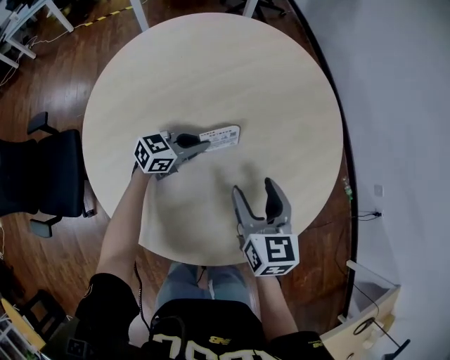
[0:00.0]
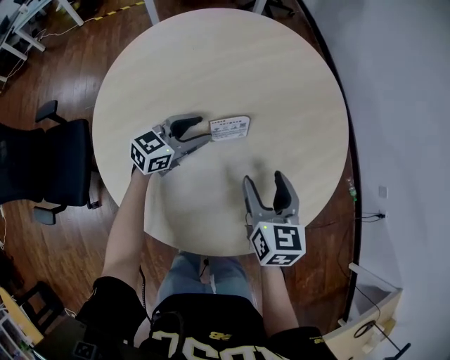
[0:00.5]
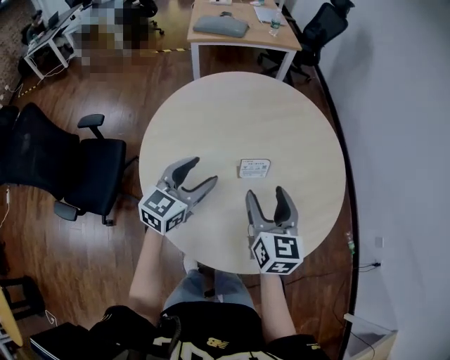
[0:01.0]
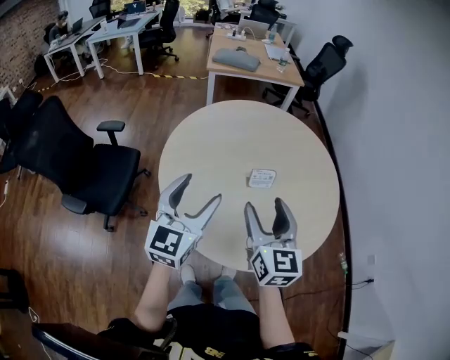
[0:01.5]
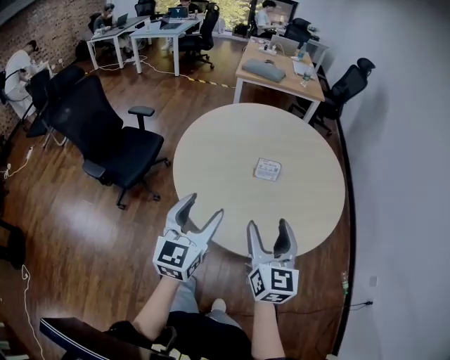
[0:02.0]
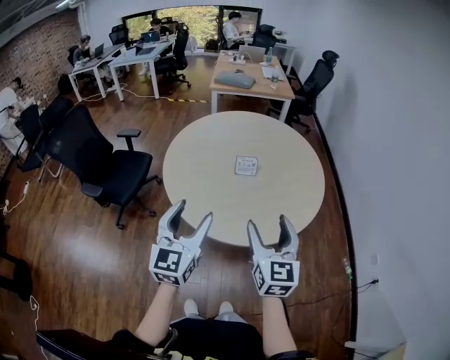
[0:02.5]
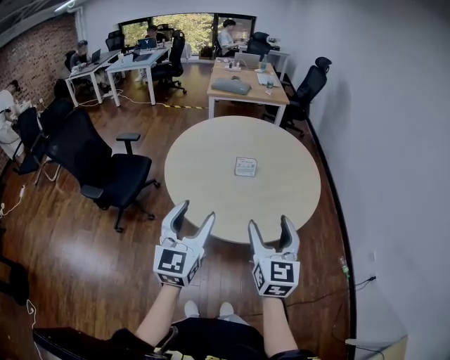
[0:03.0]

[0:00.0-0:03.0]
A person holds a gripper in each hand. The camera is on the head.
0:00.0 to 0:01.5: The left gripper goes roughly 35 cm upward, rotates roughly 60 degrees, and opens its fingers; the right gripper is displaced upward by some 20 cm, and changes its angle by some 20 degrees.
0:01.5 to 0:03.0: The right gripper heads backward and to the right, covering about 30 cm; the left gripper heads backward, covering about 25 cm.

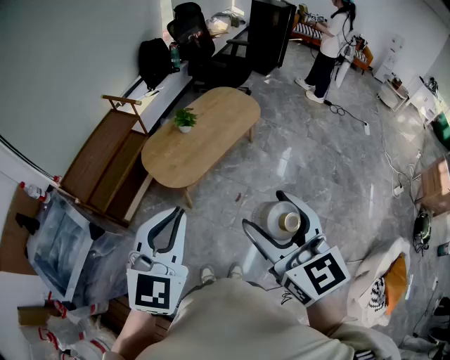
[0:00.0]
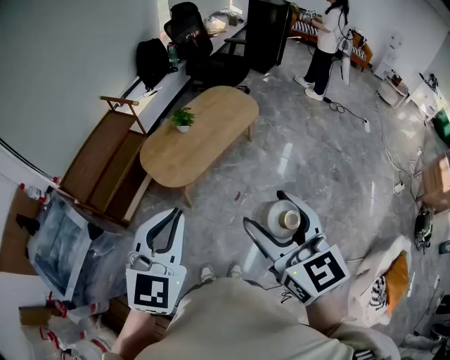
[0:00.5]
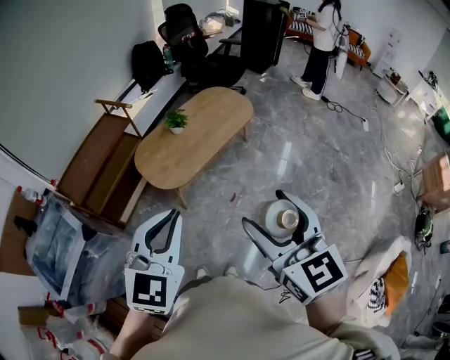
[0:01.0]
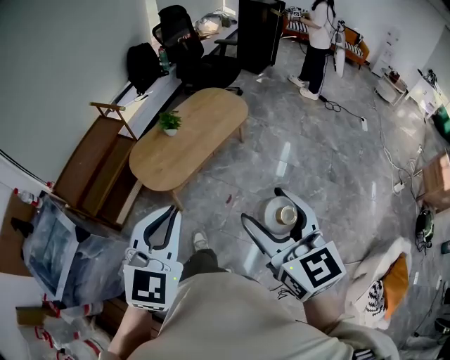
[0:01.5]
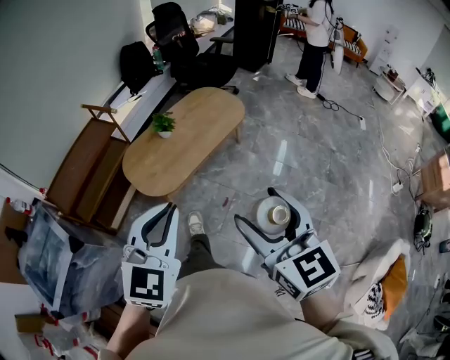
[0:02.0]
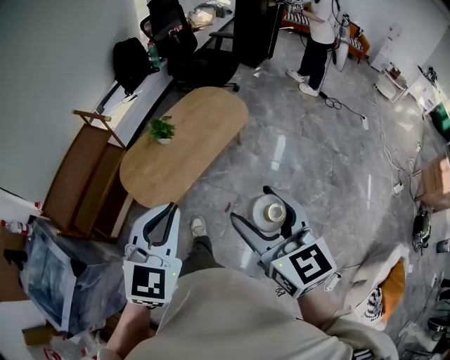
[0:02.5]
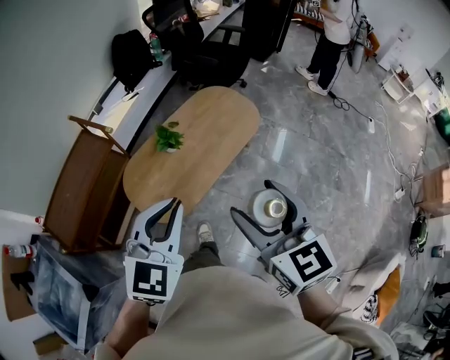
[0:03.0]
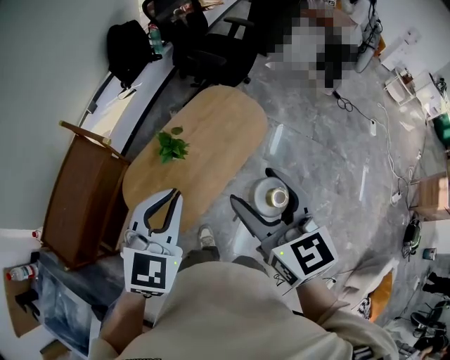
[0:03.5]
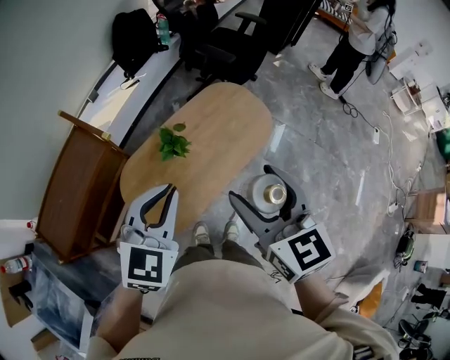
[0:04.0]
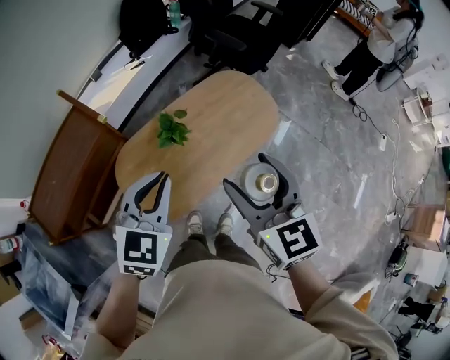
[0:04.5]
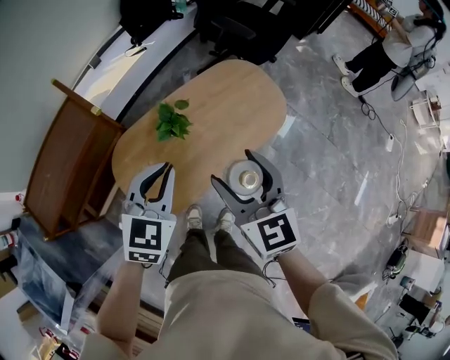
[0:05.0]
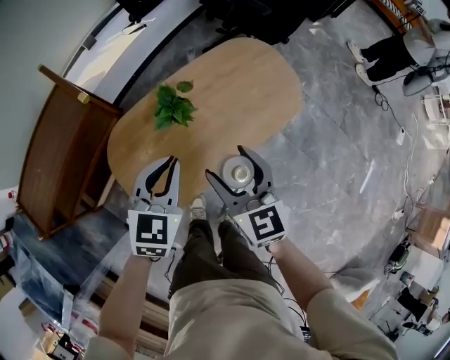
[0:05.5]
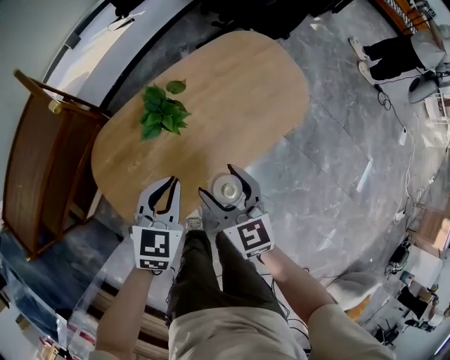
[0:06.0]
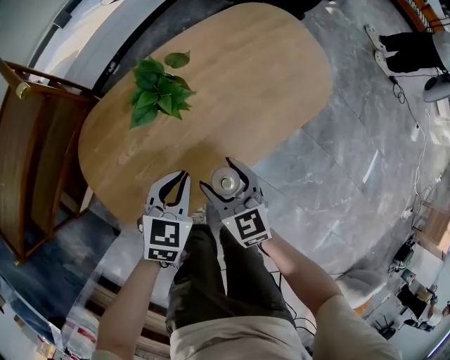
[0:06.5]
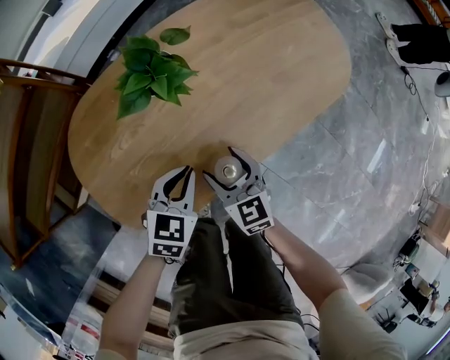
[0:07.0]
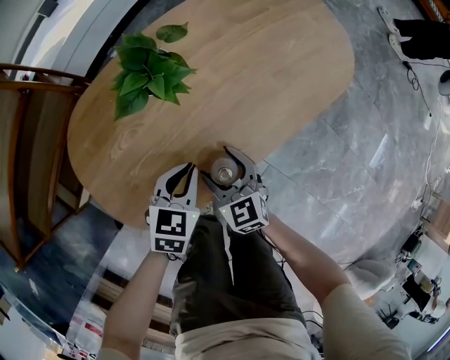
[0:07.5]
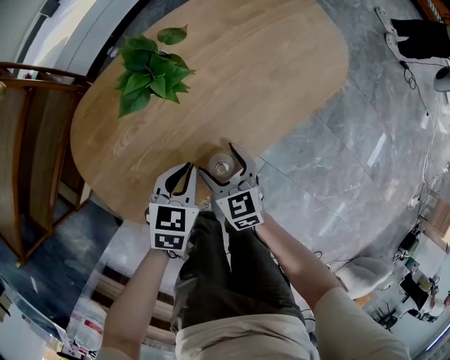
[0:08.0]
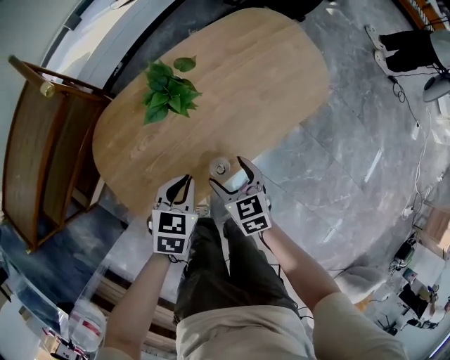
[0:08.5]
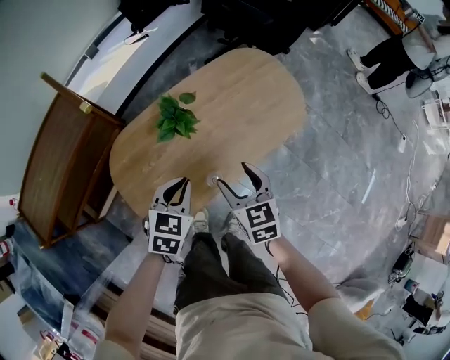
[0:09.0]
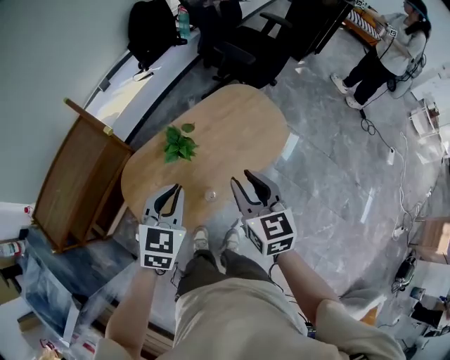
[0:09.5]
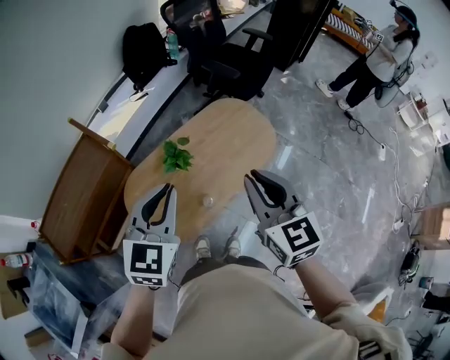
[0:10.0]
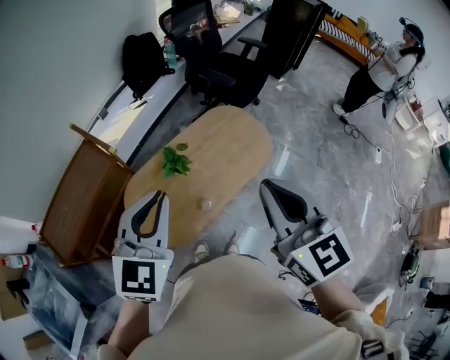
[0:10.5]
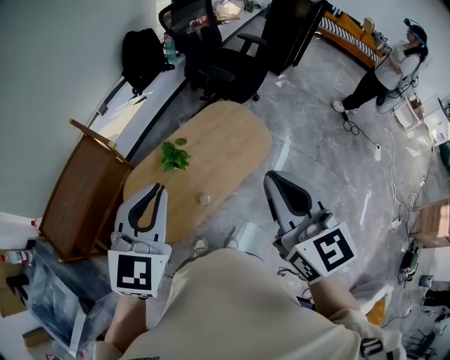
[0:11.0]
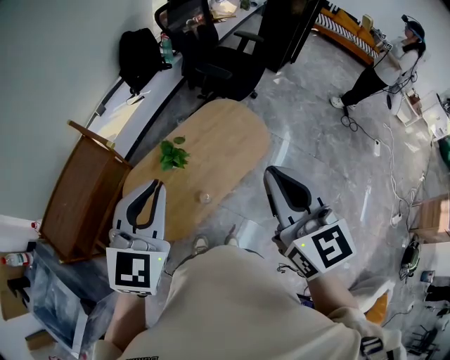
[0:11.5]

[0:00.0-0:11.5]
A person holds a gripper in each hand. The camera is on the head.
0:00.0 to 0:02.0: The right gripper travels to the right, forward and downward by about 15 cm. The left gripper is displaced to the right and forward by some 15 cm.
0:02.0 to 0:04.0: The two grippers travel together, forward, approximately 50 cm.
0:04.0 to 0:06.0: Both grippers travel together downward, about 40 cm. The left gripper turns by approximately 20 degrees.
0:06.0 to 0:07.5: Both grippers move downward, approximately 25 cm.
0:07.5 to 0:09.5: The grippers both shift upward by some 50 cm. The left gripper swivels roughly 20 degrees; the right gripper closes its fingers.
0:09.5 to 0:11.5: The left gripper heads upward, covering about 20 cm; the right gripper travels upward and backward by roughly 25 cm, and closes its fingers.

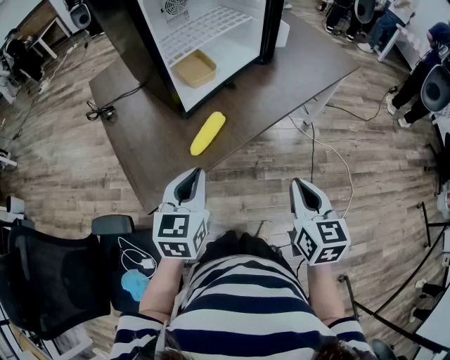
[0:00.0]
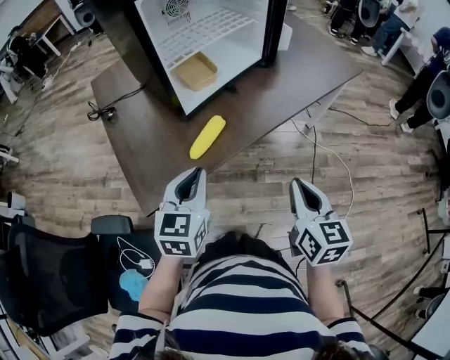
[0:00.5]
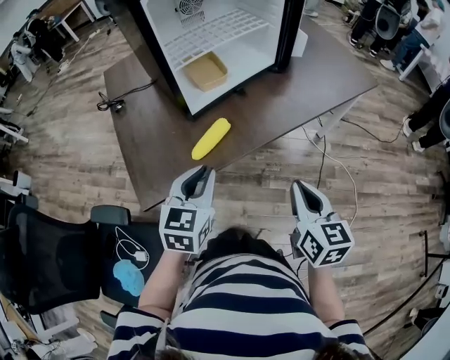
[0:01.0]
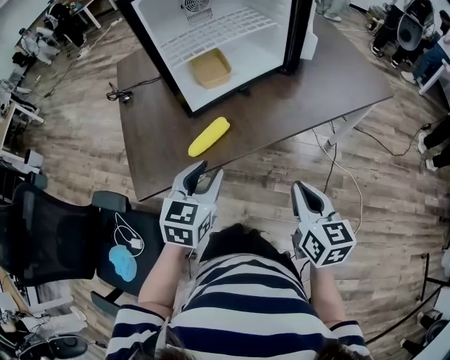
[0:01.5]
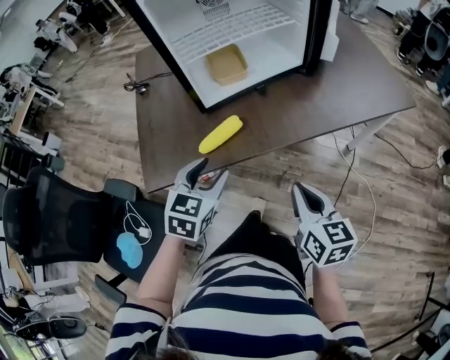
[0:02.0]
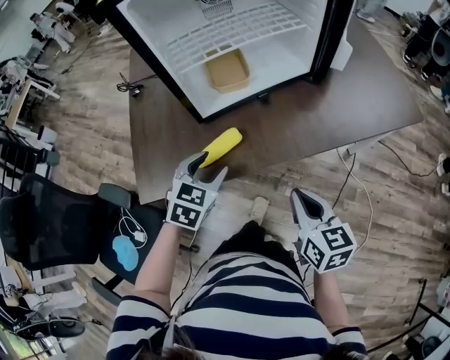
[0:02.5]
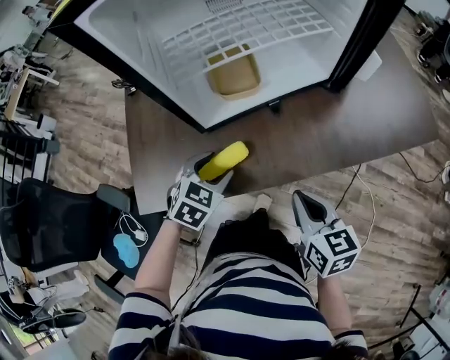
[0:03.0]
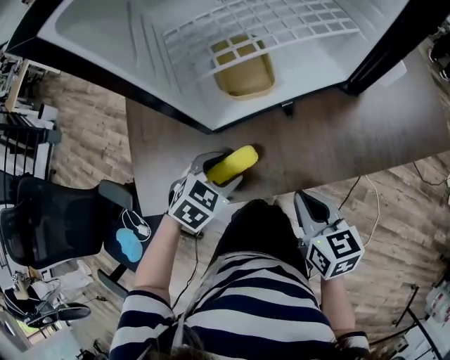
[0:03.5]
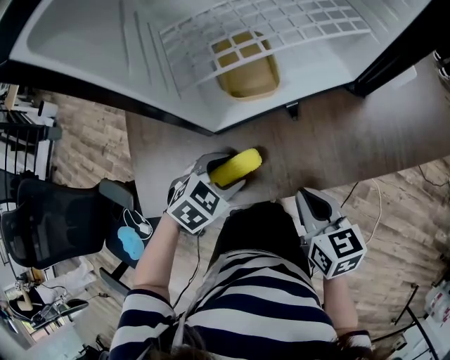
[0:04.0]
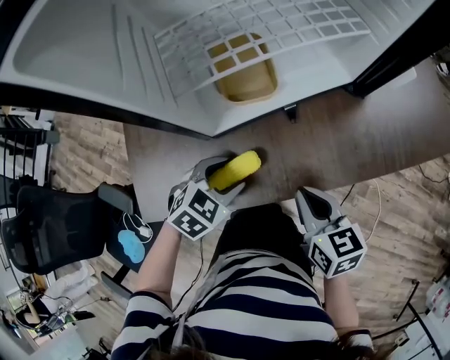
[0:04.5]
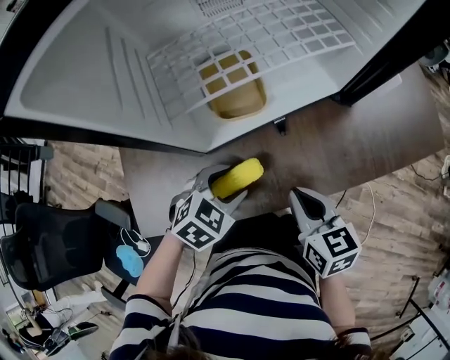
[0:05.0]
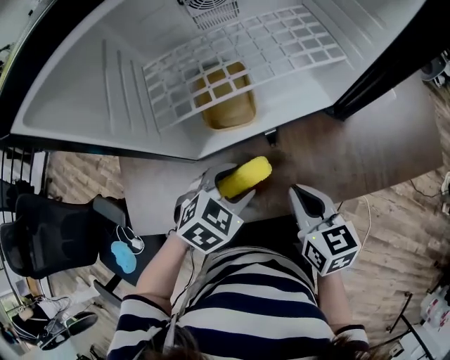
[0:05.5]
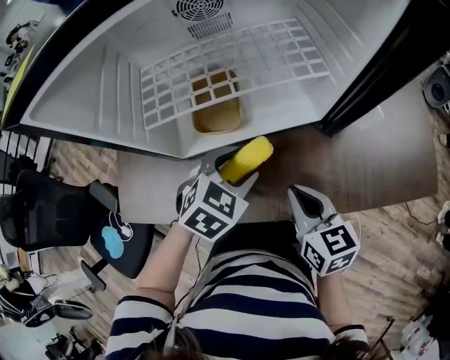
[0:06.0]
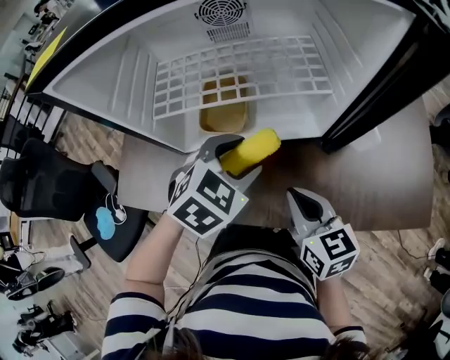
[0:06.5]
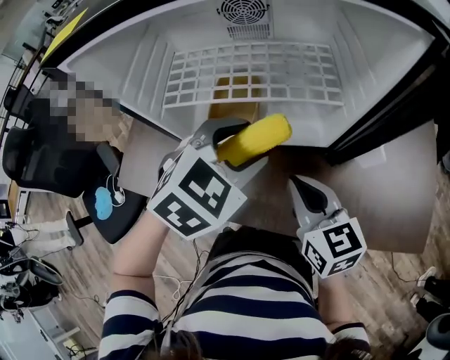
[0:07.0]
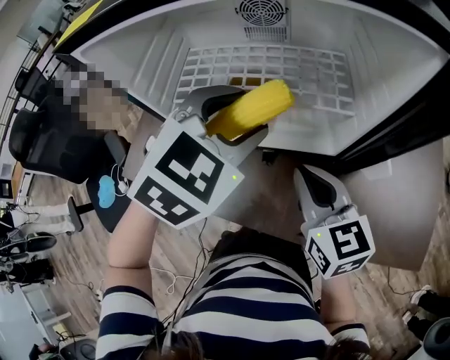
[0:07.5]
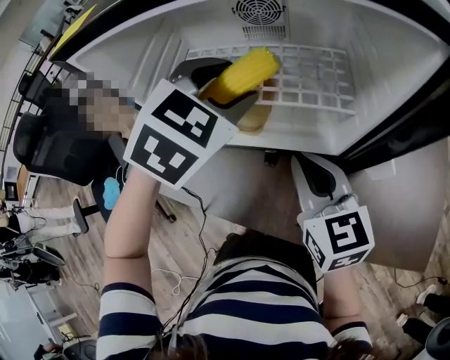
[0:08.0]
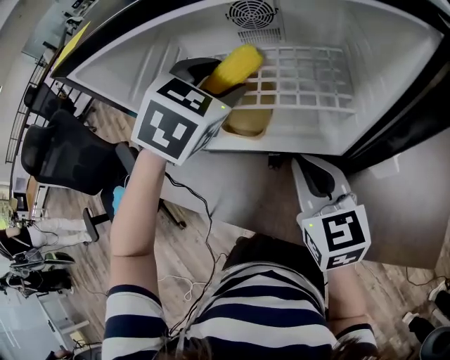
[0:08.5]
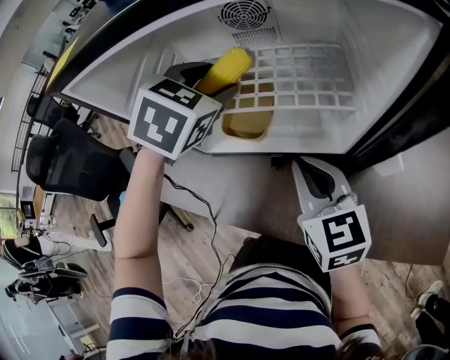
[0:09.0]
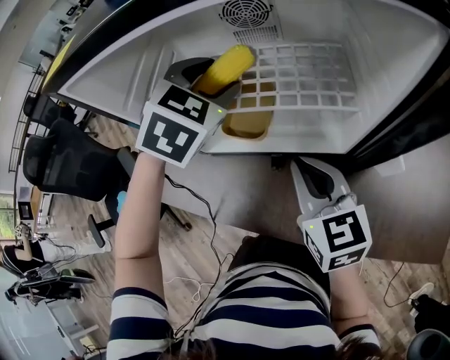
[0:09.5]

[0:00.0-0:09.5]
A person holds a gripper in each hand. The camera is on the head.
0:00.0 to 0:02.0: The left gripper shifts some 5 cm to the right, while the right gripper moves forward, about 10 cm, and rotates about 30 degrees.
0:02.0 to 0:04.0: The left gripper is displaced forward and downward by roughly 20 cm, and changes its angle by some 30 degrees. The right gripper travels forward by about 20 cm.
0:04.0 to 0:05.5: The left gripper travels to the right and forward by approximately 10 cm; the right gripper goes approximately 10 cm forward.
0:05.5 to 0:07.5: The right gripper moves about 15 cm, and turns by approximately 30 degrees, while the left gripper shifts some 20 cm upward, and turns by about 30 degrees.
0:07.5 to 0:09.5: The left gripper moves forward, approximately 10 cm.

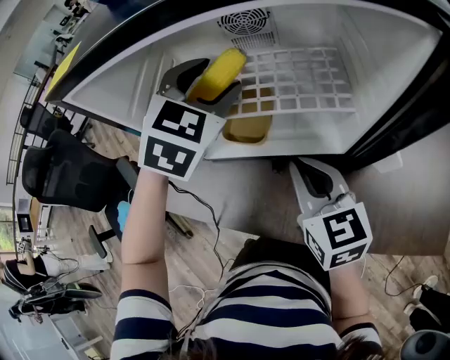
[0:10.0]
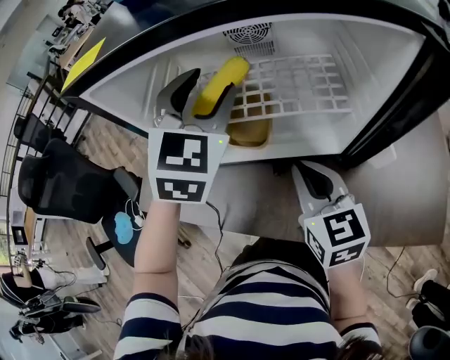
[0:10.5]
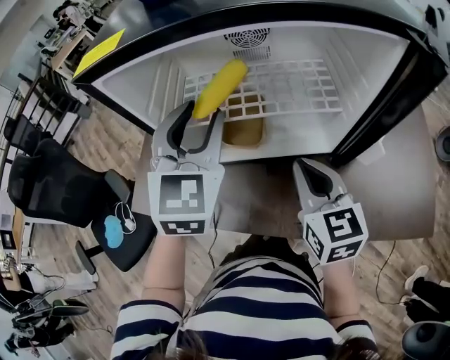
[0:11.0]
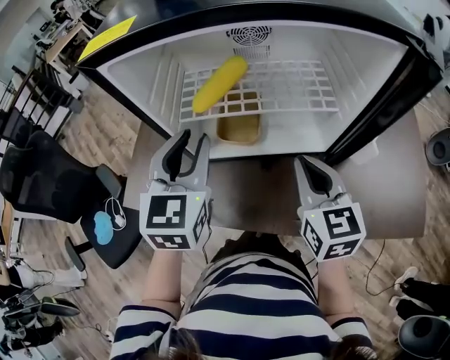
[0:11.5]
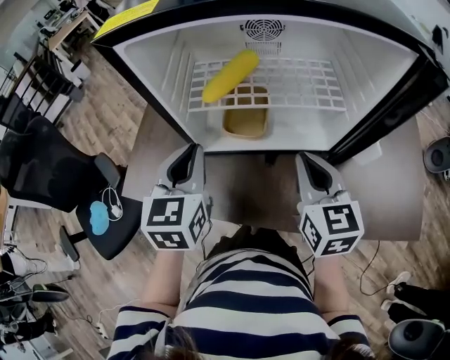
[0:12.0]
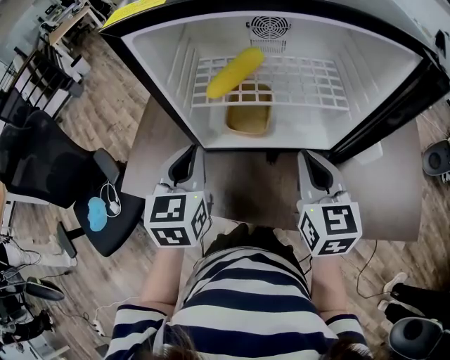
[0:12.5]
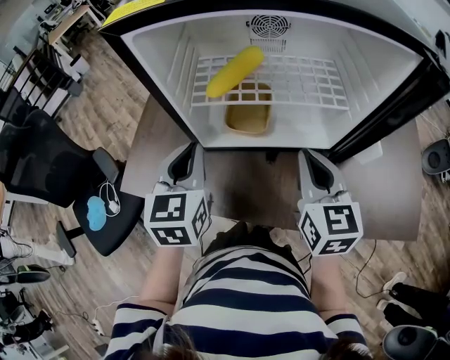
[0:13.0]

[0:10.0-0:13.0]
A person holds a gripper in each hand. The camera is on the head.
0:10.0 to 0:11.5: The left gripper travels backward and to the left by roughly 15 cm, and turns by some 30 degrees.
0:11.5 to 0:13.0: The left gripper travels downward by approximately 5 cm.
